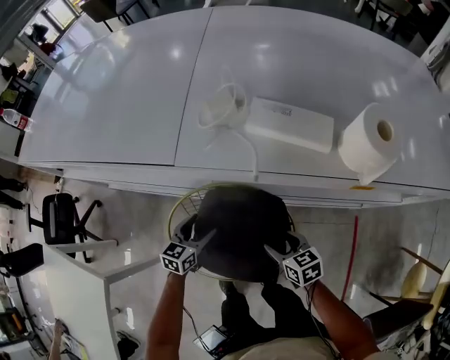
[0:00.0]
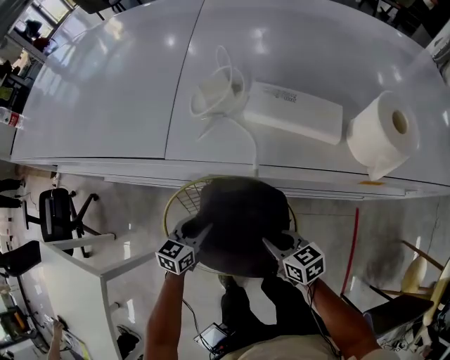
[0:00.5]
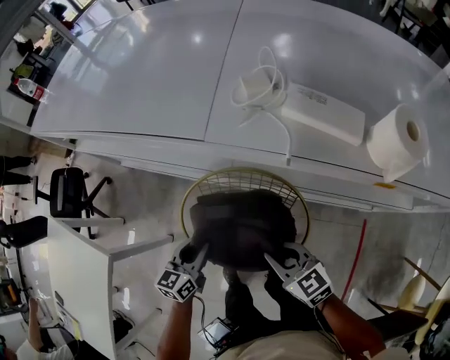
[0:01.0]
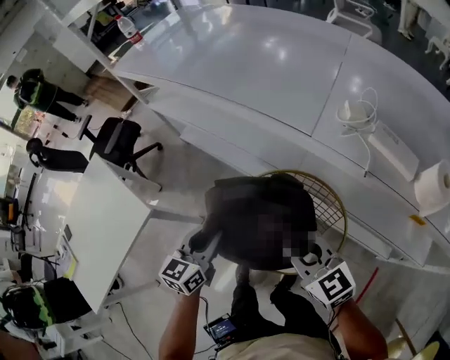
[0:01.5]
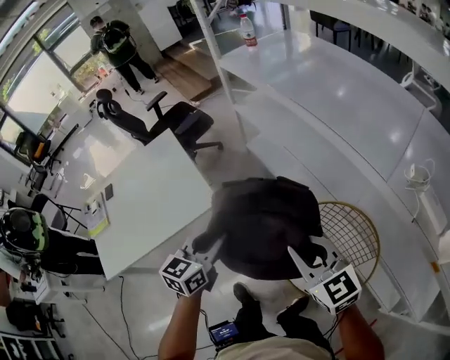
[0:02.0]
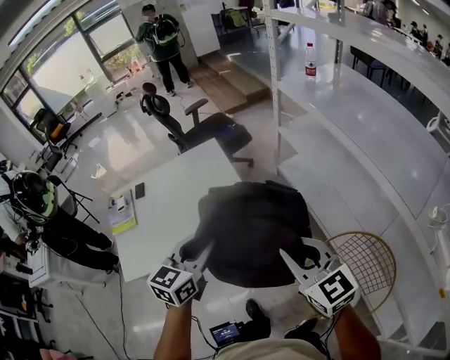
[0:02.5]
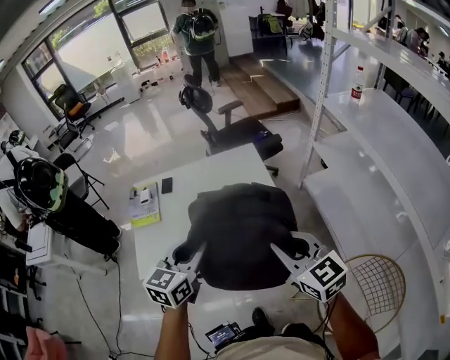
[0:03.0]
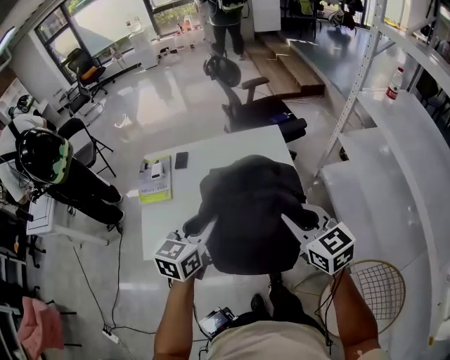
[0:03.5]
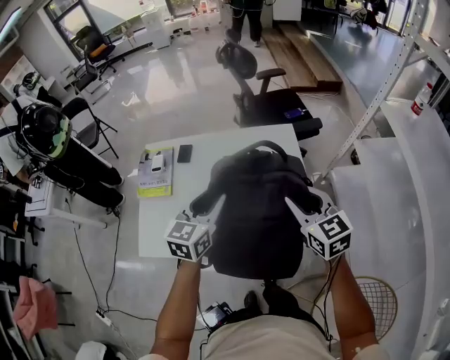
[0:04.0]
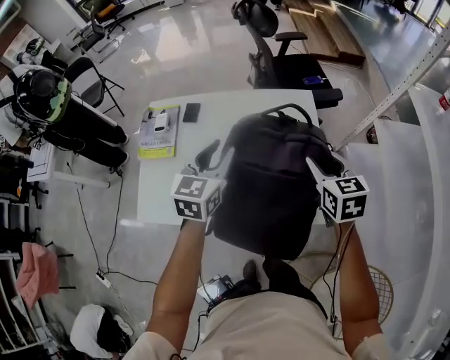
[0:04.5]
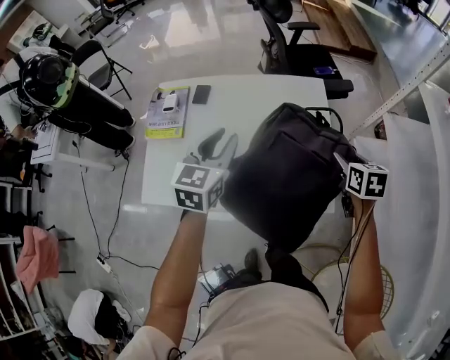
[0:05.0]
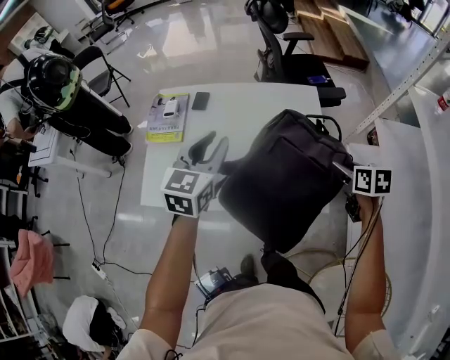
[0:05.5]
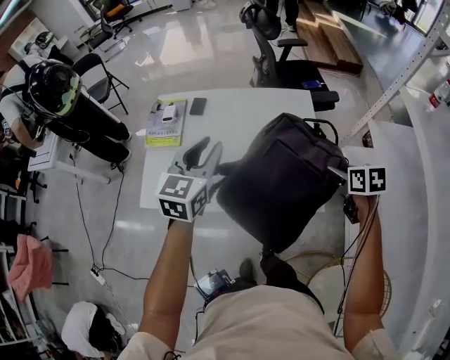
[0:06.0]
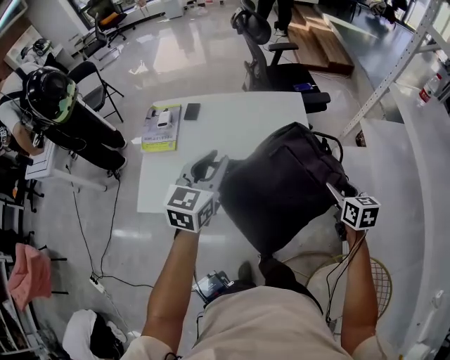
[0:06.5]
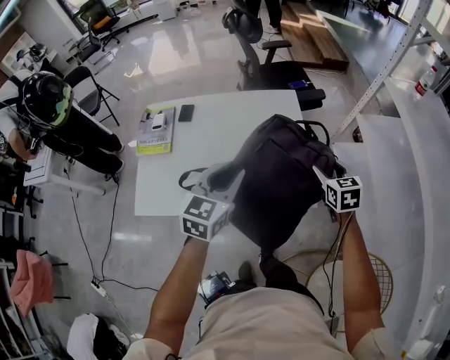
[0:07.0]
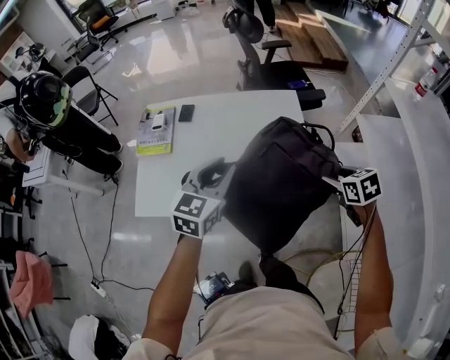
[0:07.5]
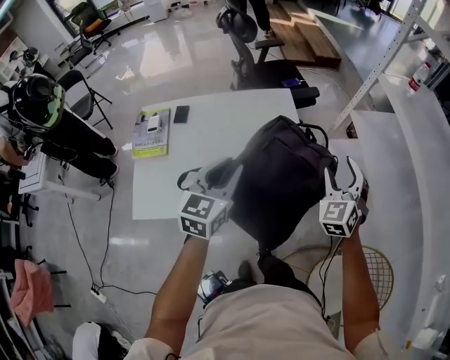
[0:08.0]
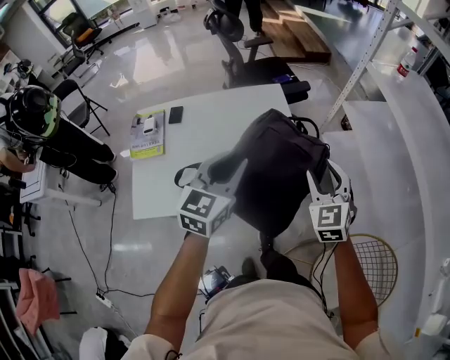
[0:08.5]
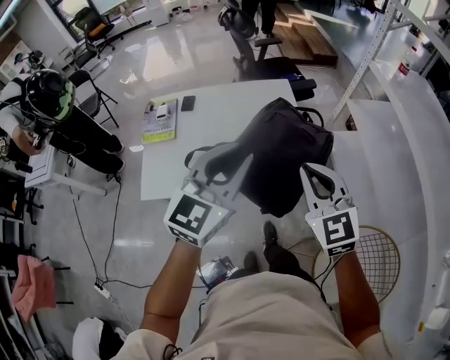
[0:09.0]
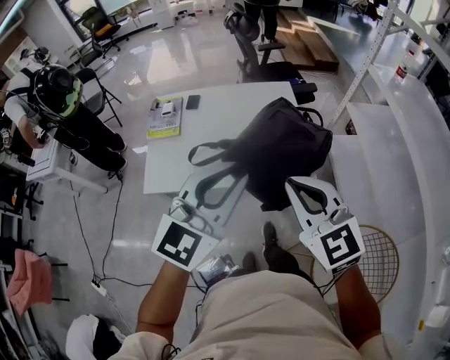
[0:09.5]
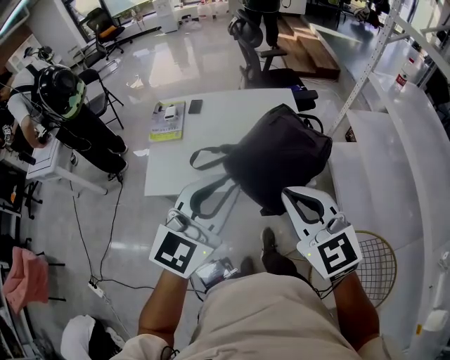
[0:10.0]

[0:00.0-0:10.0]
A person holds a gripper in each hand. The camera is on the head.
0:00.0 to 0:02.0: The left gripper changes place by some 50 cm, rotates some 50 degrees, and closes up; the right gripper shifts by roughly 50 cm, changes its angle by approximately 60 degrees, and closes up.
0:02.0 to 0:04.0: Both grippers are carried roughly 50 cm. The left gripper changes its angle by about 30 degrees, while the right gripper changes its angle by about 20 degrees.
0:04.0 to 0:06.0: The left gripper ends up about 5 cm from where it was, while the right gripper moves to the right and downward, some 15 cm, and changes its angle by approximately 40 degrees.
0:06.0 to 0:08.0: The right gripper heads upward, covering roughly 10 cm, and tilts its fingers roughly 30 degrees upward, while the left gripper ends up roughly 10 cm from where it was.
0:08.0 to 0:10.0: The right gripper goes roughly 35 cm backward, to the left and upward, rotates some 50 degrees, and closes its fingers, while the left gripper is displaced backward and upward by some 25 cm, and swivels roughly 20 degrees.

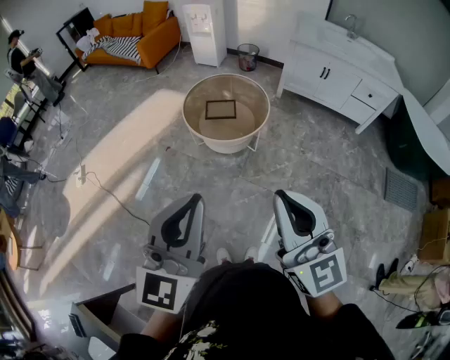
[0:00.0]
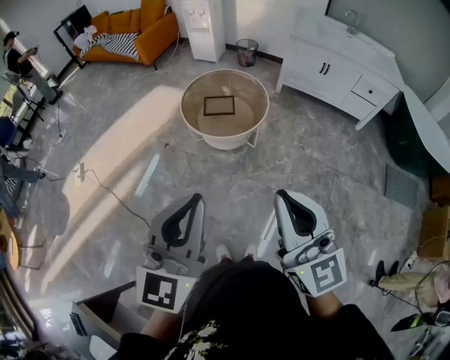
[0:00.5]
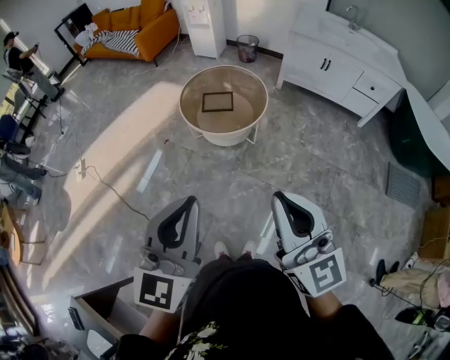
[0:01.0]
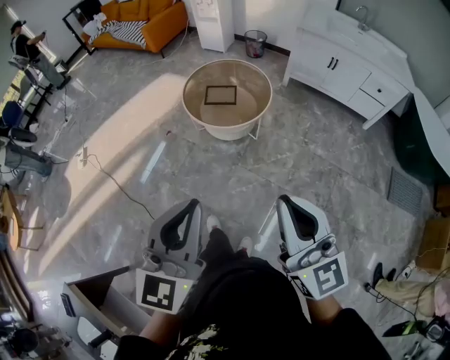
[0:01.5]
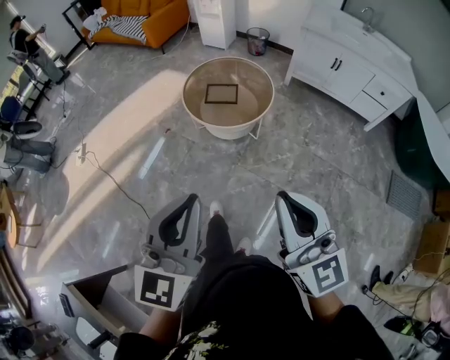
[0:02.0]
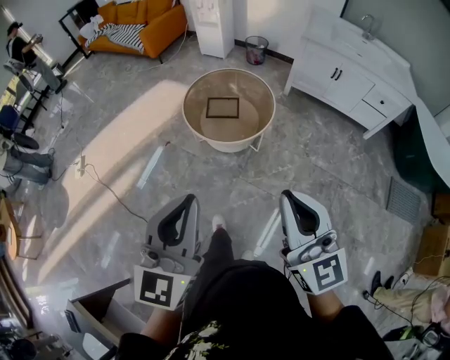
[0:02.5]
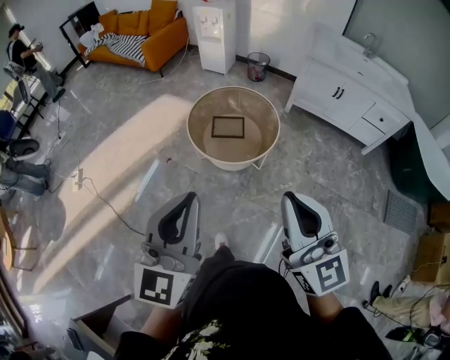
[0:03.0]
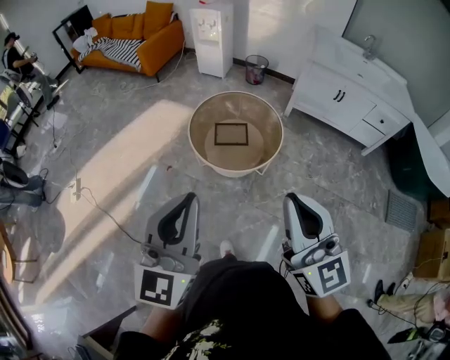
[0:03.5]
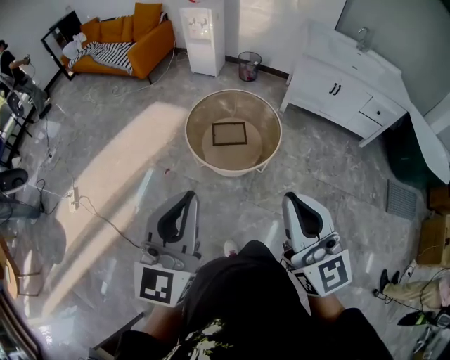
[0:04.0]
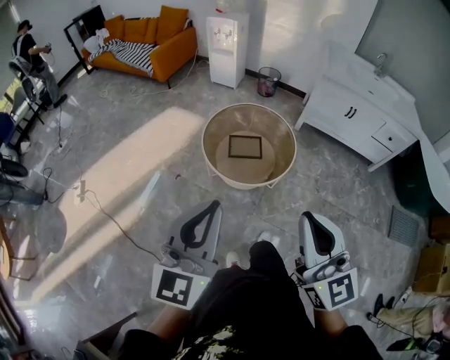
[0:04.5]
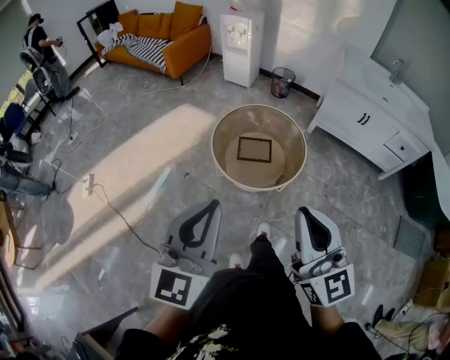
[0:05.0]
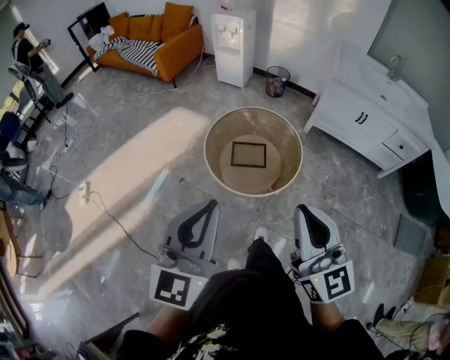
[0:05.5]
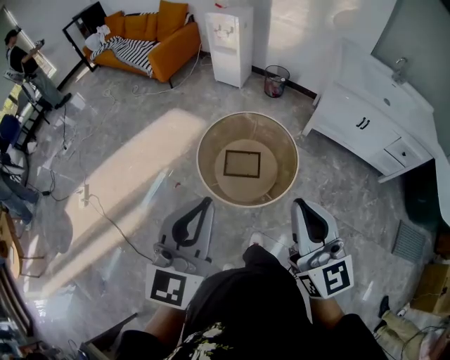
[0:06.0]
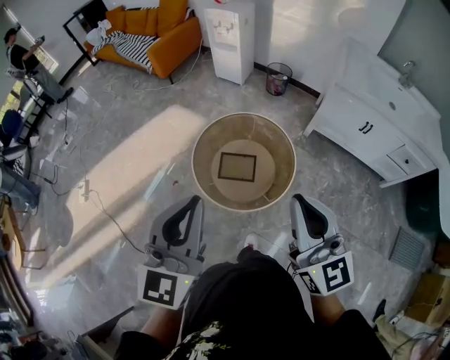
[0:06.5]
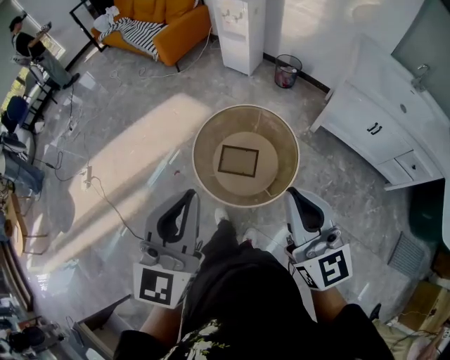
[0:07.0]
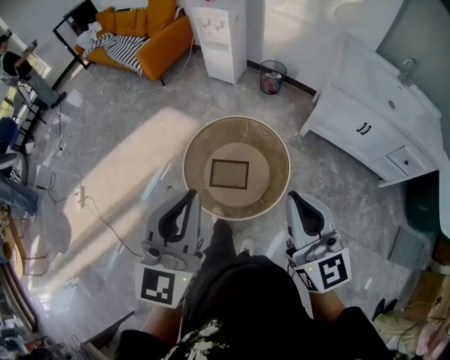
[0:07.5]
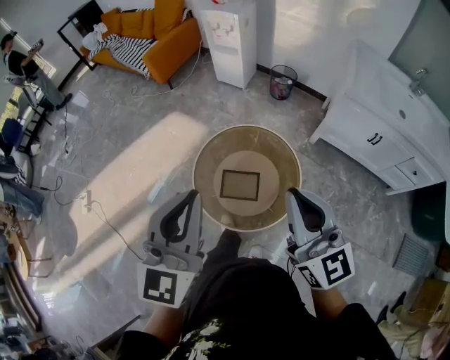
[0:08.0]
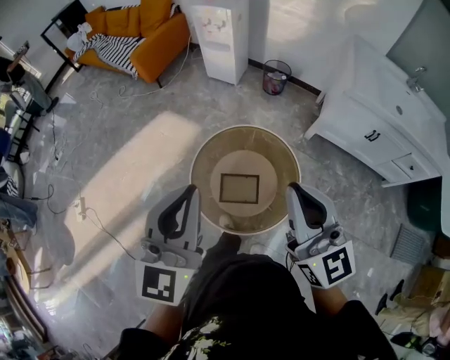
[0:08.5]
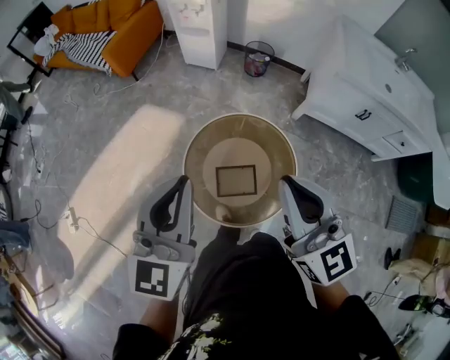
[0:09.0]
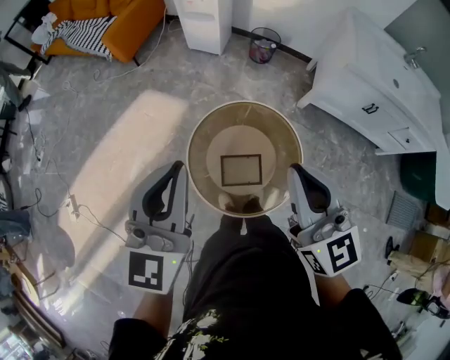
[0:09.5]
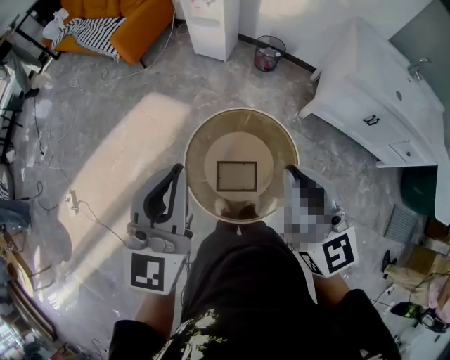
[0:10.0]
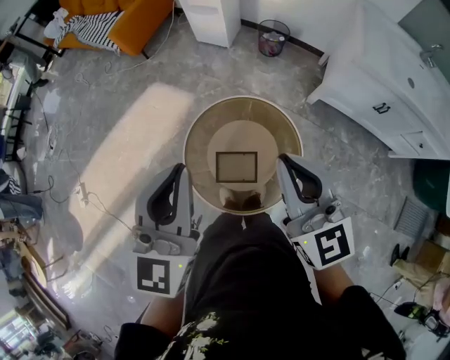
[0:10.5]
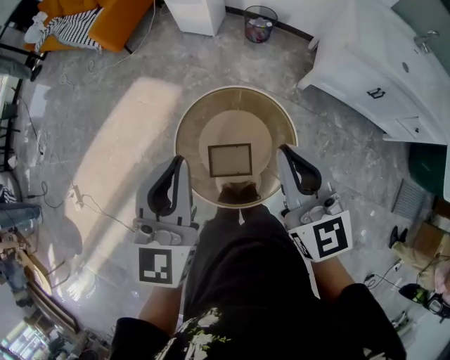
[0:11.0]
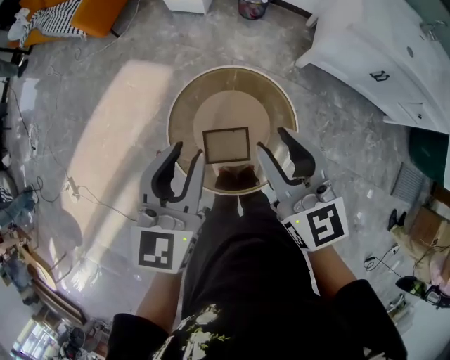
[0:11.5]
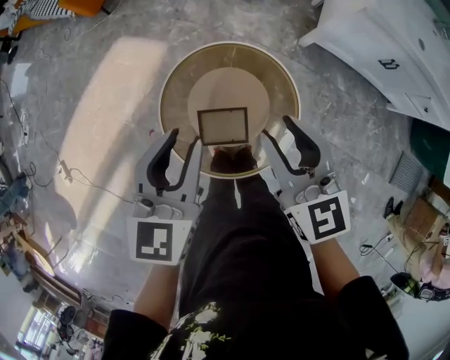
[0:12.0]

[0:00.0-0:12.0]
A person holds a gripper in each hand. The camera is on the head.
0:00.0 to 0:02.0: Both grippers move to the right and downward, some 10 cm.
0:02.0 to 0:04.0: Both grippers travel together forward and to the left, approximately 30 cm.
0:04.0 to 0:06.0: Both grippers move forward, about 25 cm.
0:06.0 to 0:08.0: The two grippers go about 25 cm forward.
0:08.0 to 0:10.0: The grippers both shift forward and to the left by roughly 20 cm.
0:10.0 to 0:12.0: The right gripper travels downward and forward by some 20 cm, and opens up, while the left gripper shifts roughly 25 cm downward and to the right, changes its angle by roughly 30 degrees, and opens up.

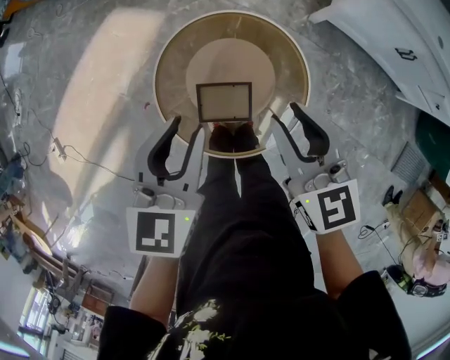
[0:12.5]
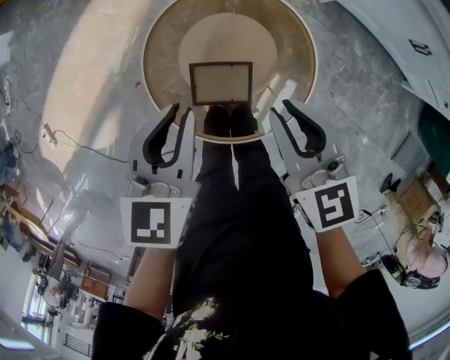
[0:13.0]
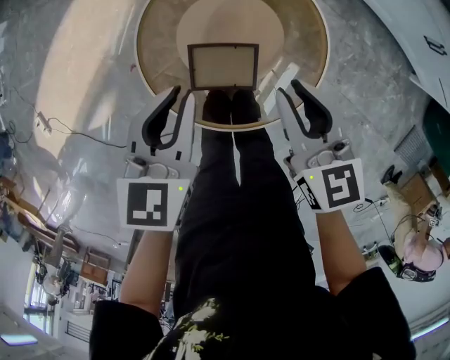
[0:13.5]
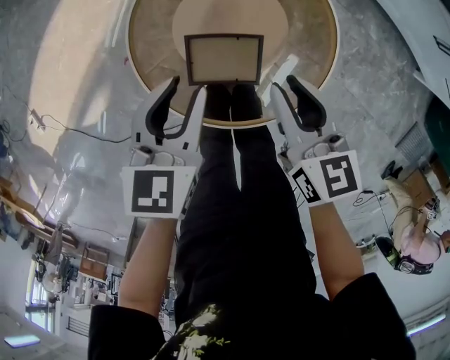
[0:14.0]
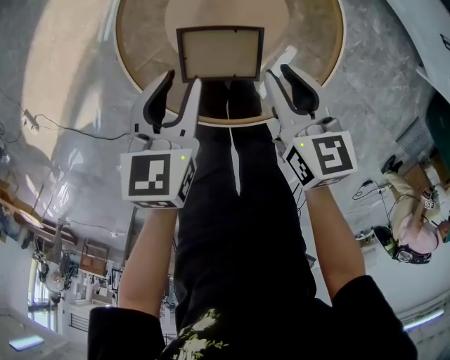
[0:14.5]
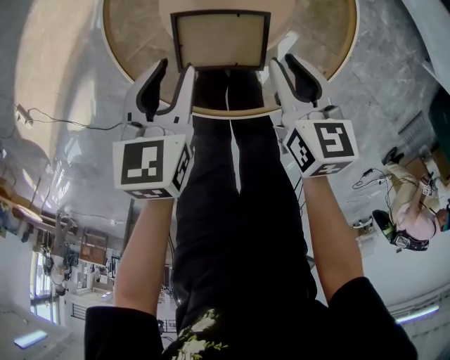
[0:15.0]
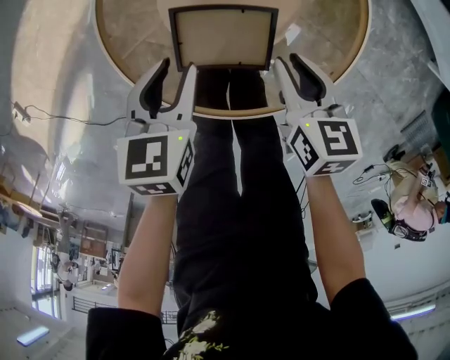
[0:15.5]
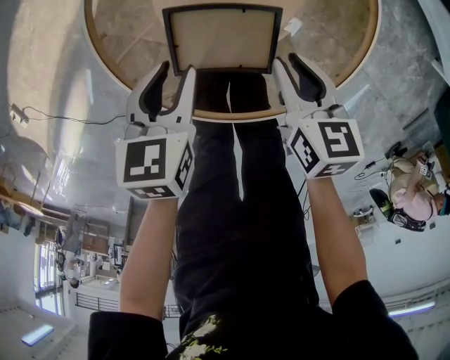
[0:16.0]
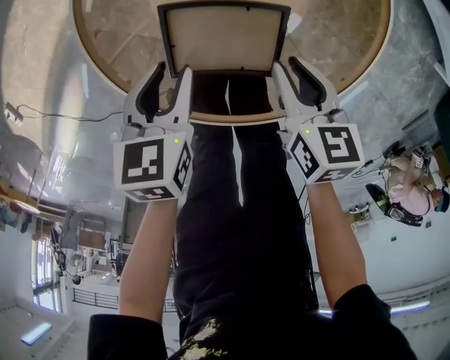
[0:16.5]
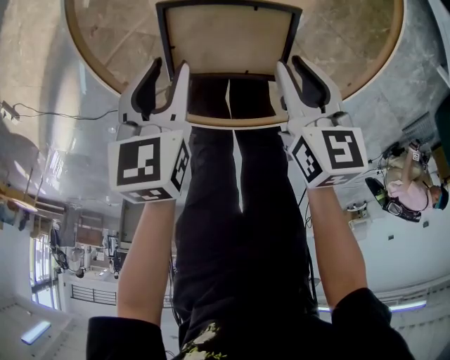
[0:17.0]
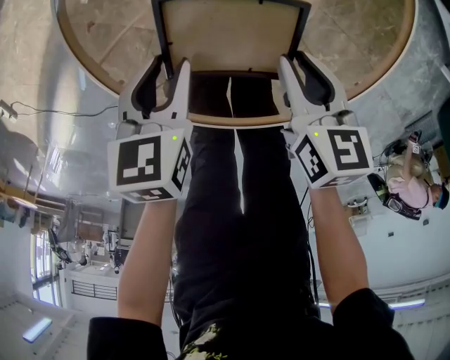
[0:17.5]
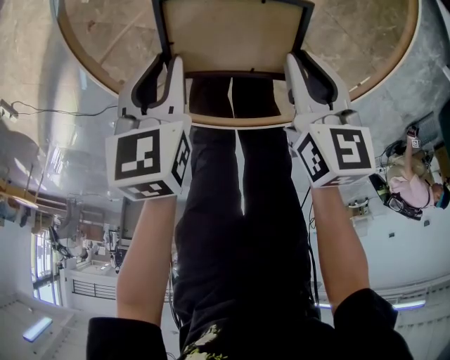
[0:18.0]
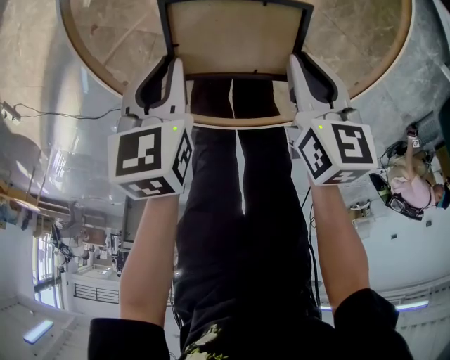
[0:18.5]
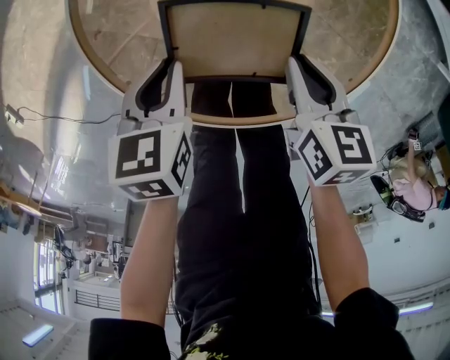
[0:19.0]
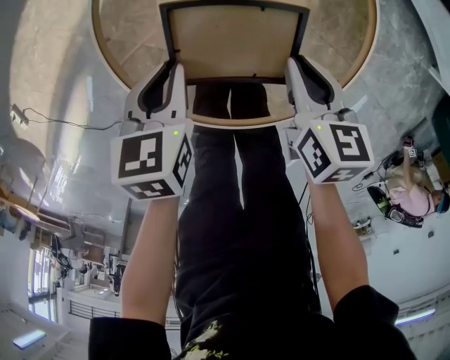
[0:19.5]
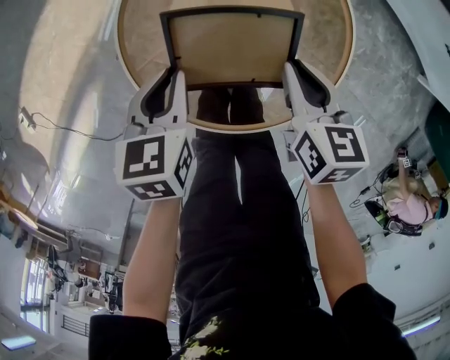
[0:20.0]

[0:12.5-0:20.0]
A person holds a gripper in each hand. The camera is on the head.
0:12.5 to 0:14.5: Both grippers travel together downward, some 30 cm. The right gripper changes its angle by some 20 degrees.
0:14.5 to 0:16.5: Both grippers travel together downward, roughly 15 cm.
0:16.5 to 0:18.0: Both grippers travel together downward, some 5 cm.
0:18.0 to 0:20.0: The two grippers go about 20 cm upward.
